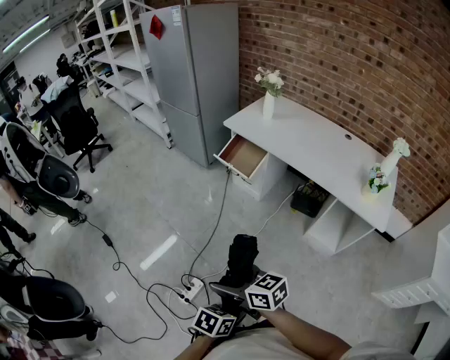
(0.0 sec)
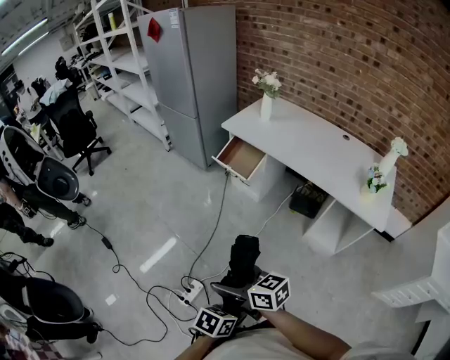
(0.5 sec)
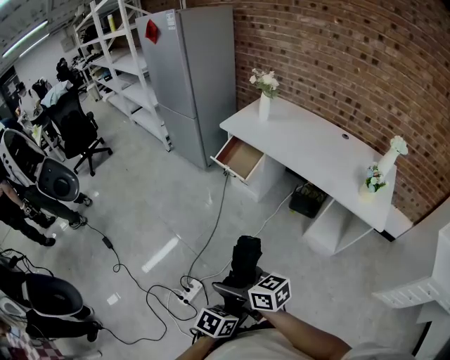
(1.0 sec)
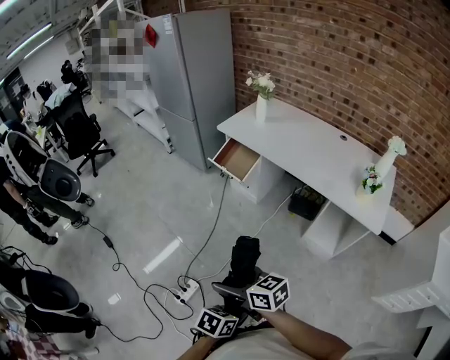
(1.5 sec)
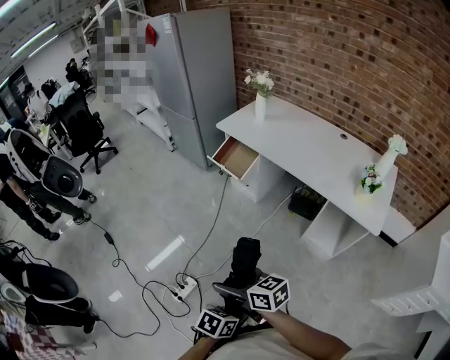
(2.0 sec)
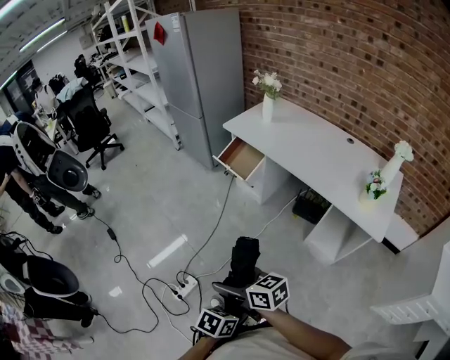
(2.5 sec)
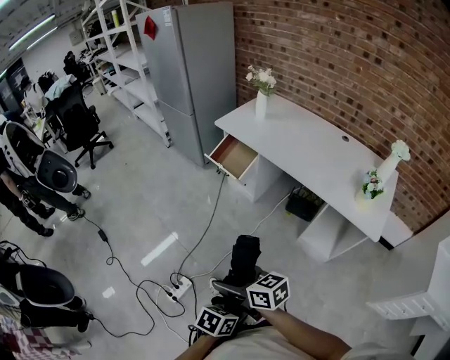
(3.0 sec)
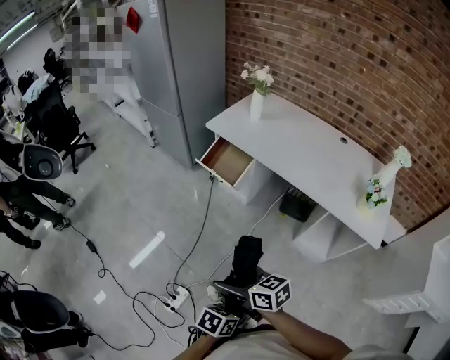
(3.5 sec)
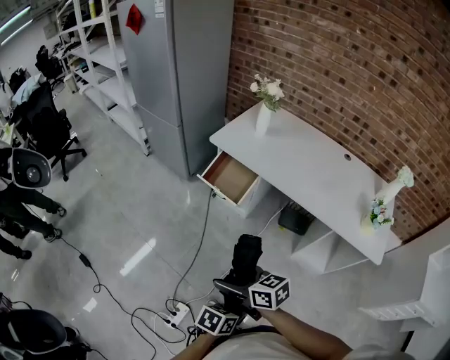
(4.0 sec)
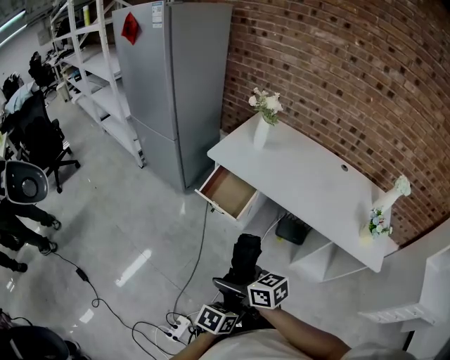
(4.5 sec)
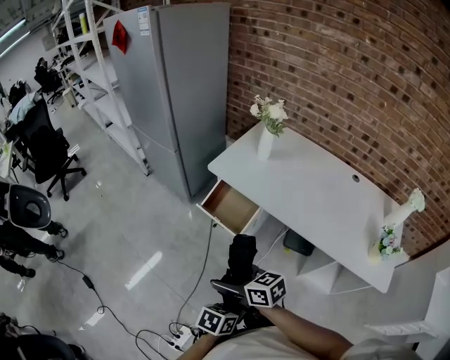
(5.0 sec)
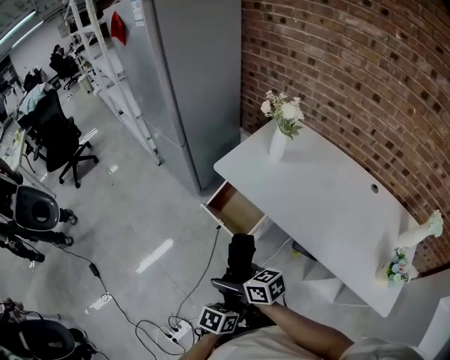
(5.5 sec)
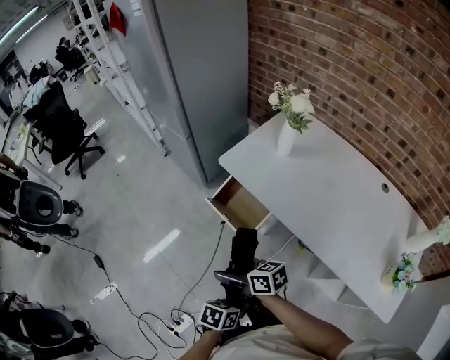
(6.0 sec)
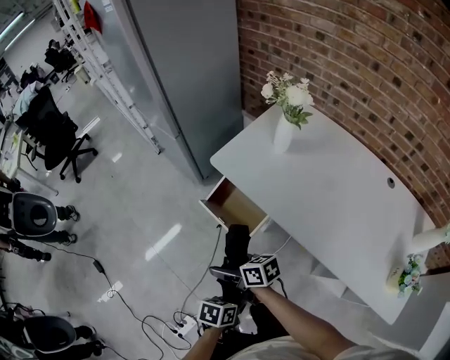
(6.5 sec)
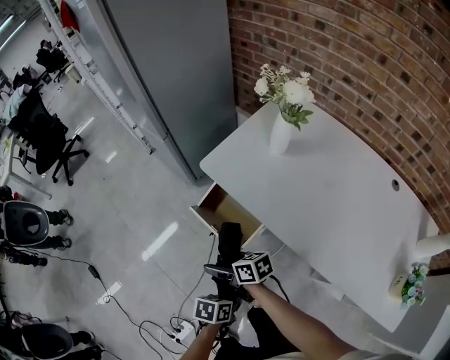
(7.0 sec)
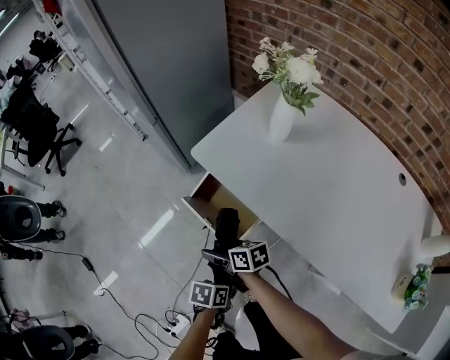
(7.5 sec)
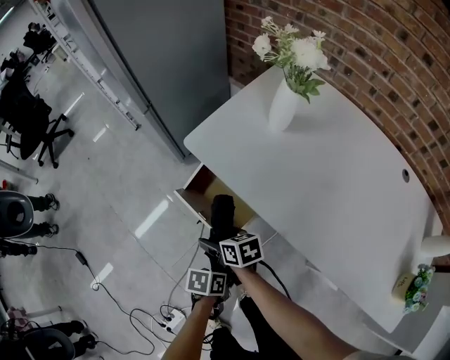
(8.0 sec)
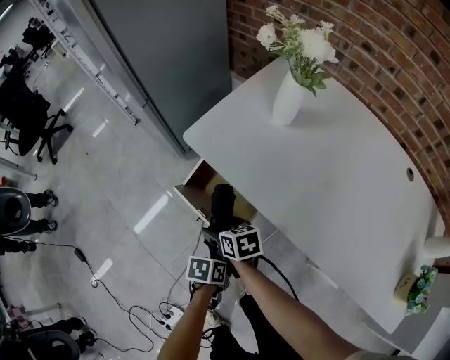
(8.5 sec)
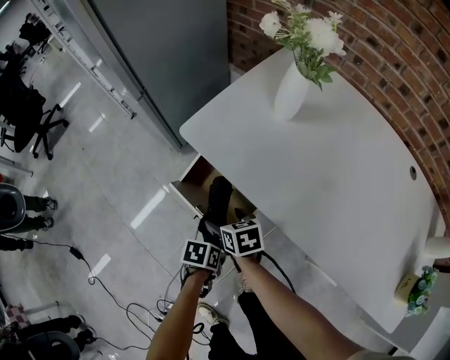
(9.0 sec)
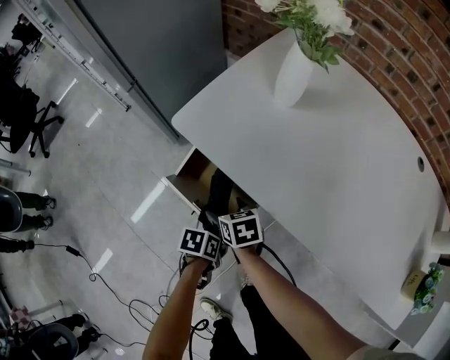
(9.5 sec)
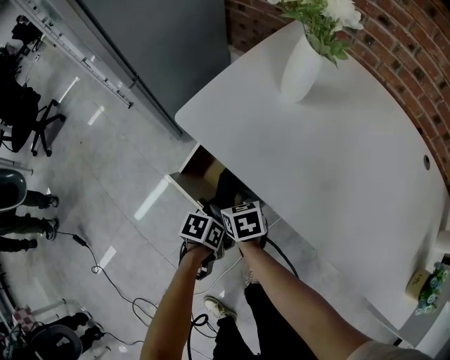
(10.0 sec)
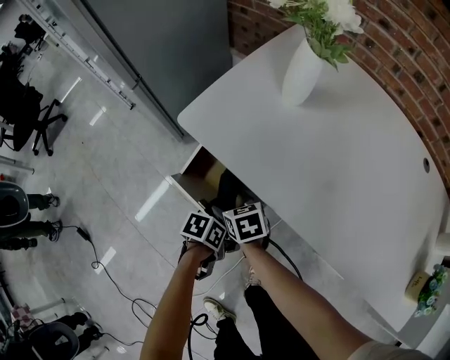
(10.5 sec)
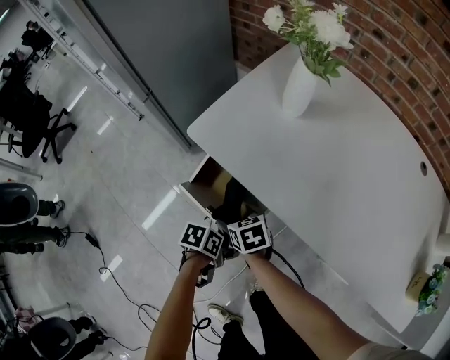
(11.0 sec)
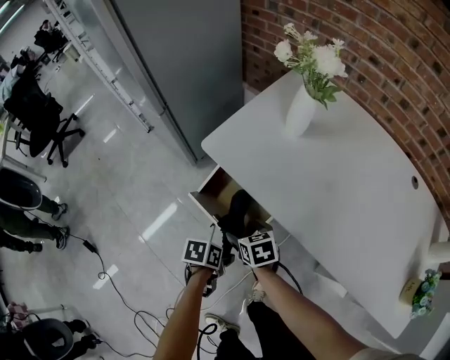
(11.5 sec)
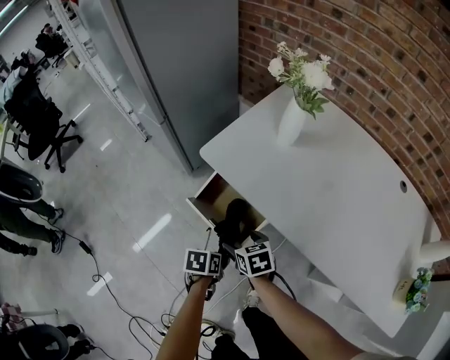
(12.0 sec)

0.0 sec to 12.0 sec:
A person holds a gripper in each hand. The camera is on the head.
0.0 sec to 2.0 sec: The left gripper moves some 10 cm. The right gripper changes place by about 10 cm.
2.0 sec to 4.0 sec: The left gripper ends up some 25 cm from where it was. The right gripper changes place by some 25 cm.
4.0 sec to 6.0 sec: The right gripper changes place by about 25 cm, while the left gripper ends up approximately 30 cm from where it was.
6.0 sec to 8.0 sec: Both grippers move downward, about 20 cm.
8.0 sec to 10.0 sec: The right gripper ends up some 10 cm from where it was; the left gripper moves approximately 10 cm.
10.0 sec to 12.0 sec: Both grippers move upward, roughly 10 cm. The left gripper swivels approximately 20 degrees.

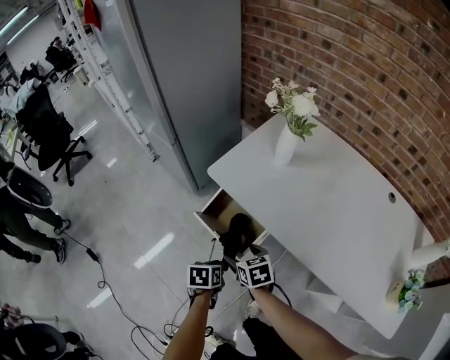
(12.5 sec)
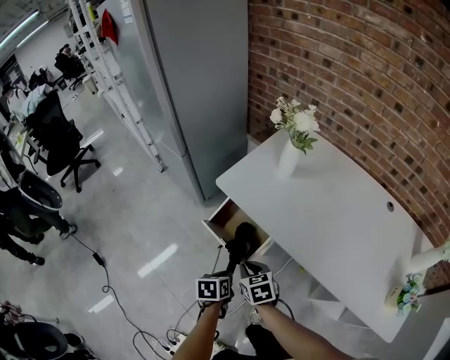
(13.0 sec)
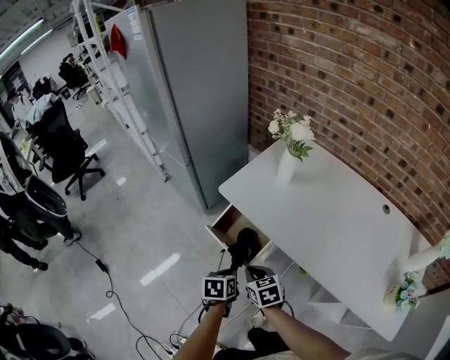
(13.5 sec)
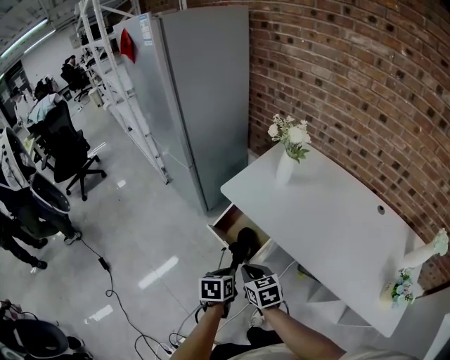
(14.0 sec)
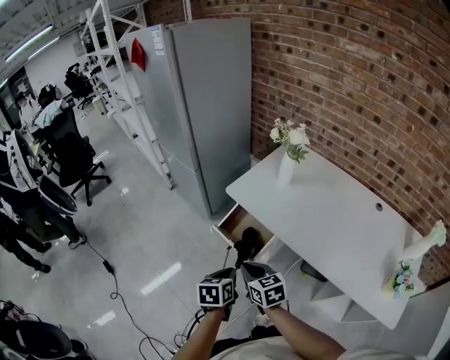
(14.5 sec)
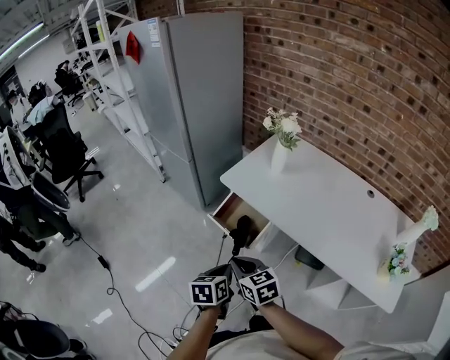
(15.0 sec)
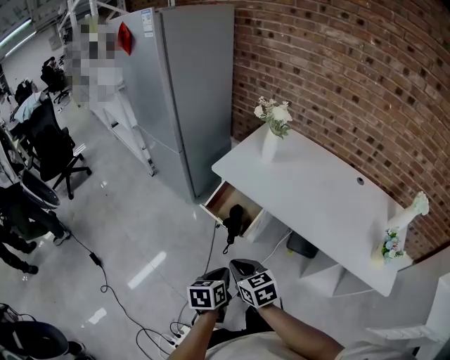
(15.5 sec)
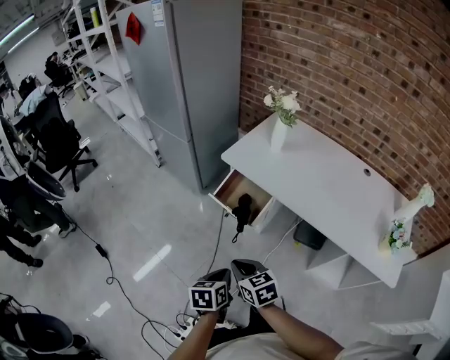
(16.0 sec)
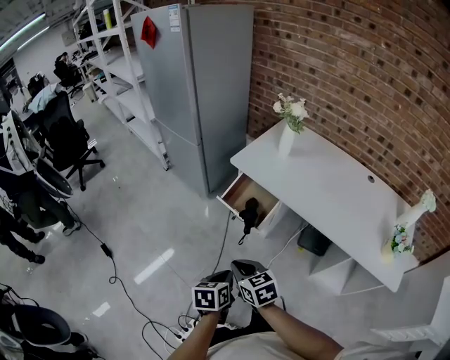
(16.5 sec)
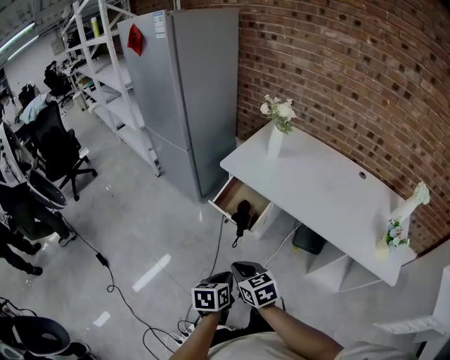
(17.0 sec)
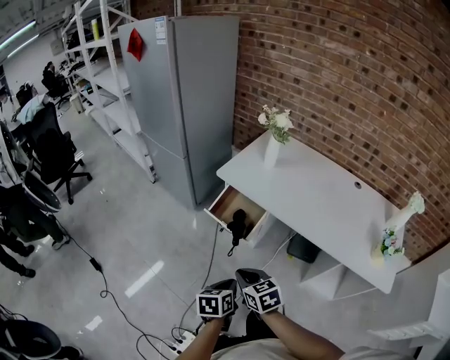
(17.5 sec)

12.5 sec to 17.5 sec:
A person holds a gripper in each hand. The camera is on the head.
12.5 sec to 15.0 sec: The grippers both shift upward and backward by approximately 25 cm. The left gripper changes its angle by roughly 20 degrees; the right gripper closes its fingers.
15.0 sec to 17.5 sec: Both grippers move backward, about 10 cm.

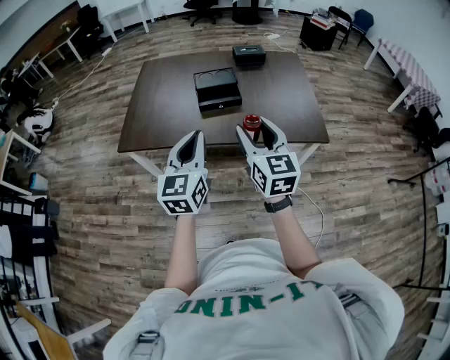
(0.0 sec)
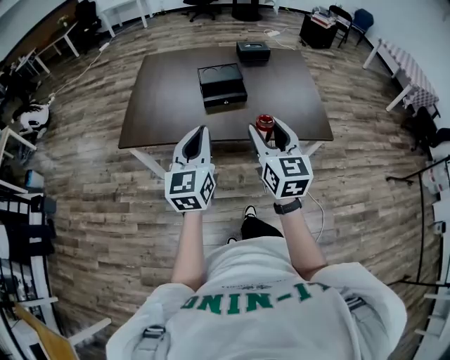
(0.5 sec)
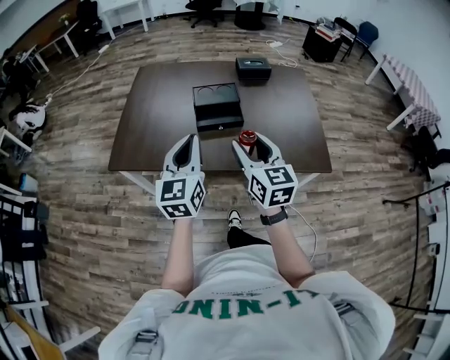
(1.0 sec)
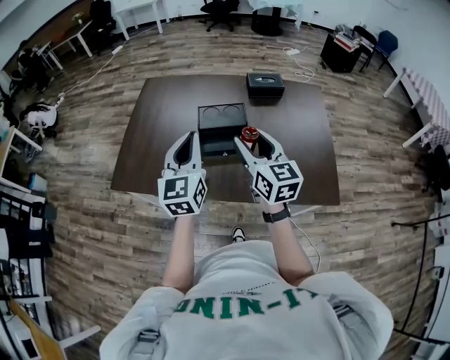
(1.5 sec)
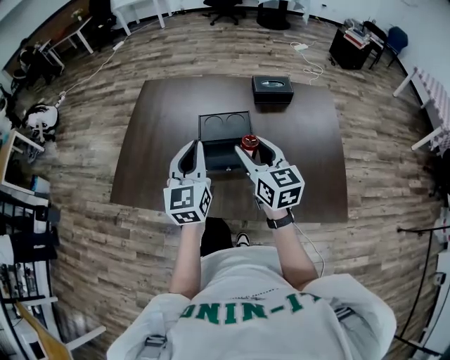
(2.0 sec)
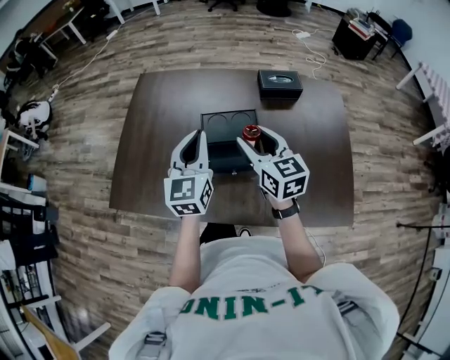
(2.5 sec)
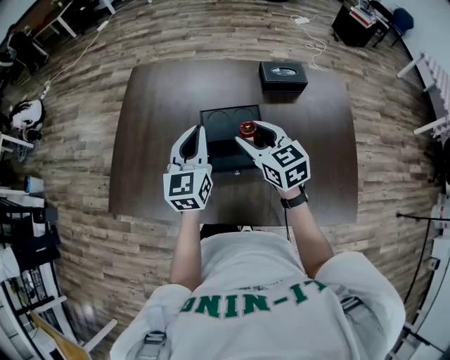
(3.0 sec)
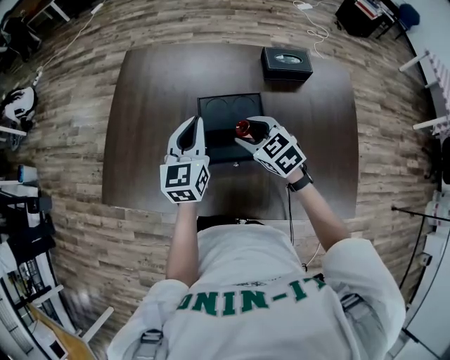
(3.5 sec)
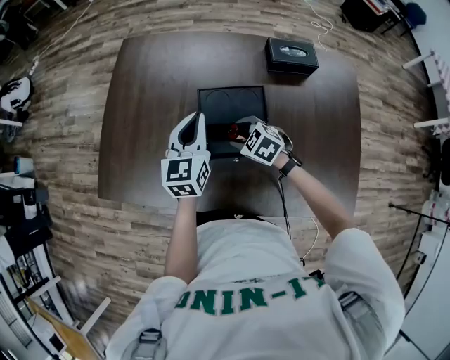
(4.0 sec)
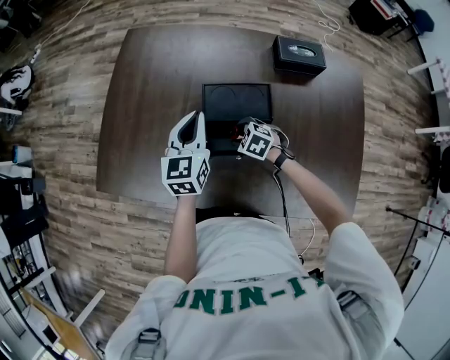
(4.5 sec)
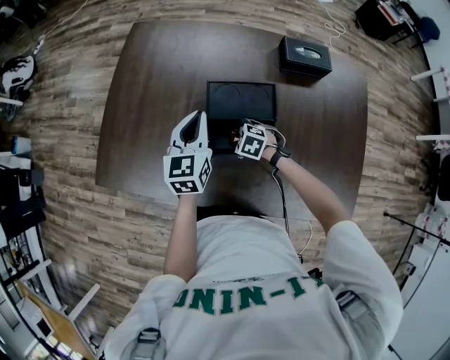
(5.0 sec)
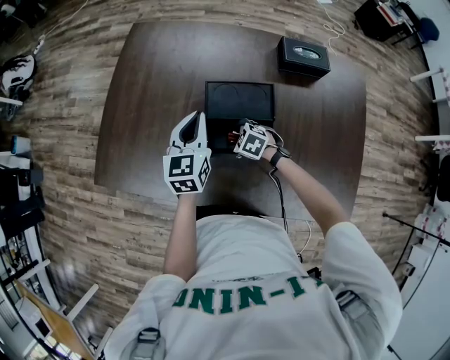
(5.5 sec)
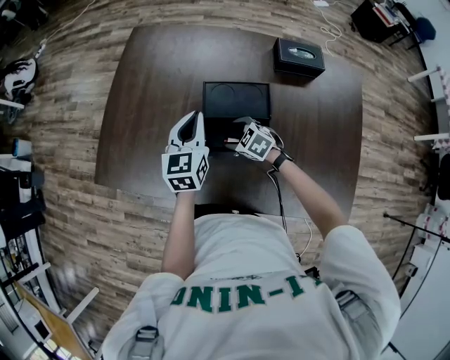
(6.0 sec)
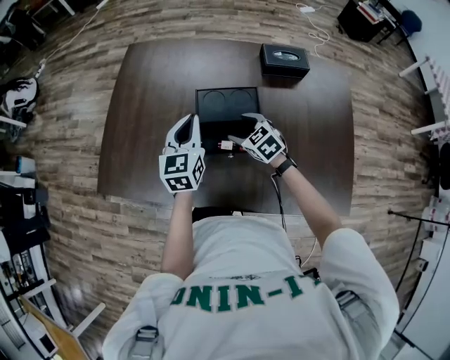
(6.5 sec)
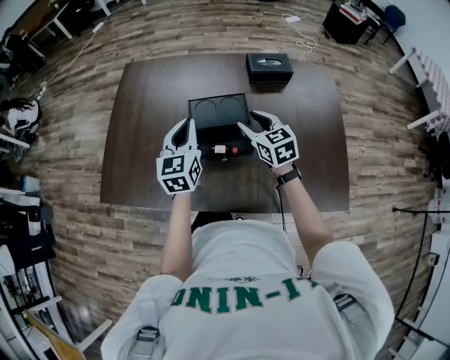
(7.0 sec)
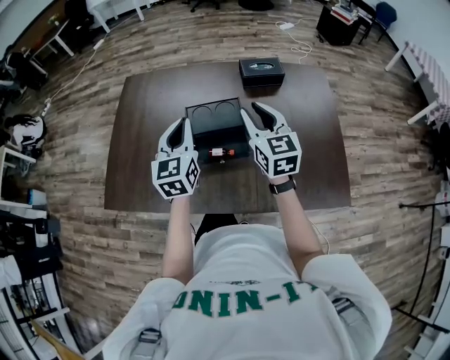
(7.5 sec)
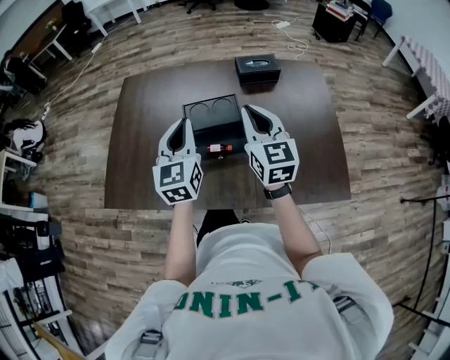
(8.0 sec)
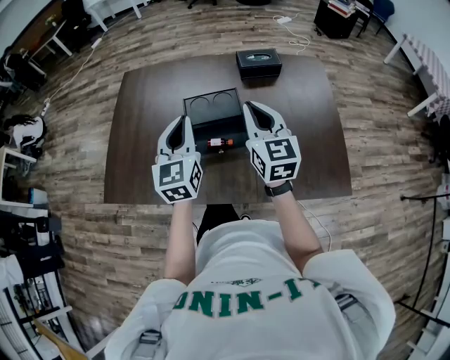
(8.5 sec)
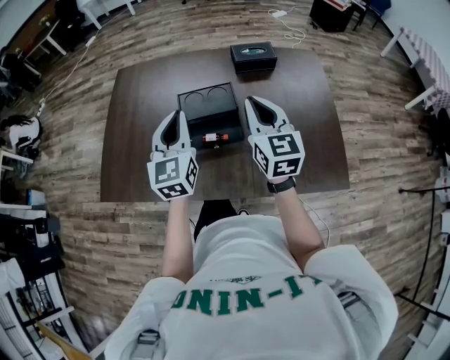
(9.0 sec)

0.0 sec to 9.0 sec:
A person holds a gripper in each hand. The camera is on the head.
0.0 sec to 2.0 sec: The grippers both shift forward by some 40 cm.
2.0 sec to 4.5 sec: The left gripper is displaced forward and downward by some 25 cm. Meanwhile the right gripper is displaced downward and forward by approximately 40 cm, and angles its fingers downward, by about 50 degrees.
4.5 sec to 7.0 sec: The left gripper changes place by roughly 10 cm; the right gripper travels upward by some 20 cm, and tips its fingers upward by approximately 40 degrees.
7.0 sec to 9.0 sec: The left gripper shifts some 10 cm upward and backward; the right gripper goes approximately 15 cm upward and backward, swivels approximately 30 degrees, and closes.

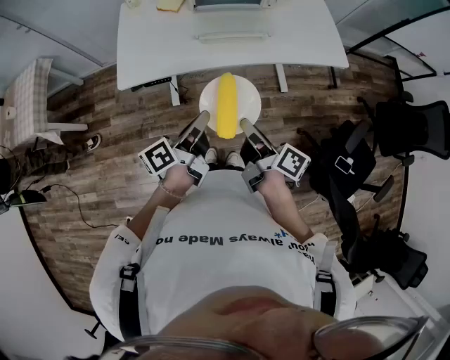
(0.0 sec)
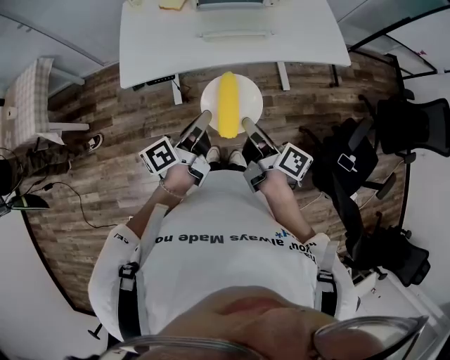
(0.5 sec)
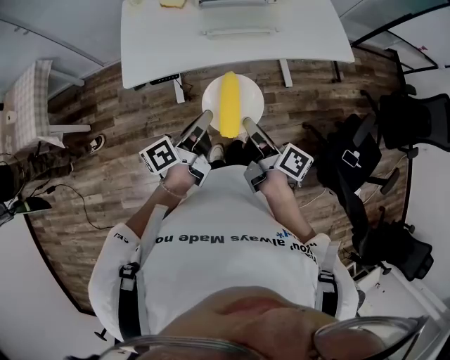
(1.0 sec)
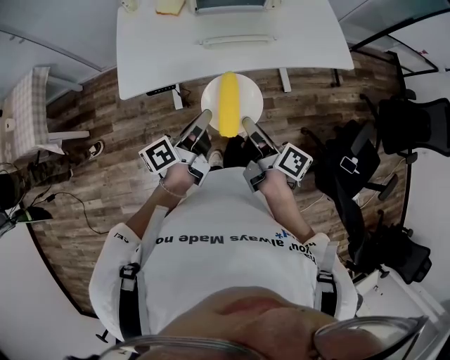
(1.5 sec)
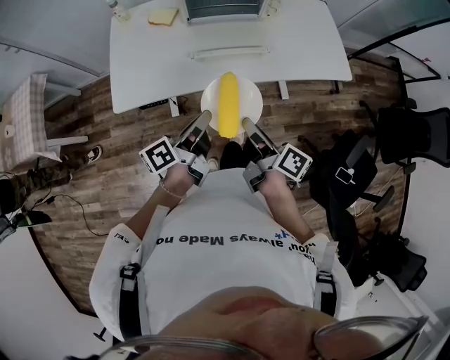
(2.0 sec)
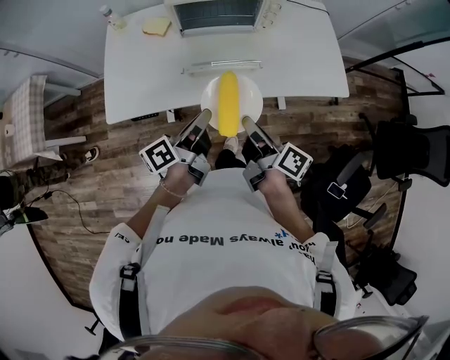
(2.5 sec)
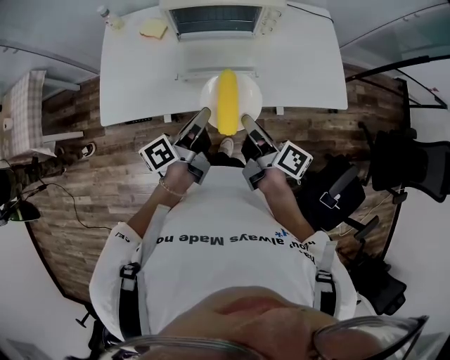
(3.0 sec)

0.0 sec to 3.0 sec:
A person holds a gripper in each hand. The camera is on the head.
0.0 sec to 1.5 sec: The right gripper shifts by roughly 5 cm. The left gripper ends up roughly 5 cm from where it was.
1.5 sec to 3.0 sec: Both grippers move forward and to the right, approximately 25 cm.
